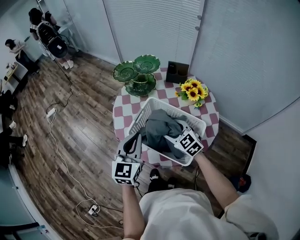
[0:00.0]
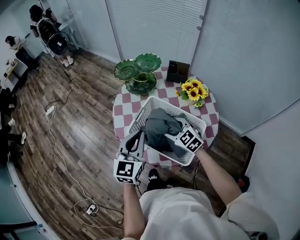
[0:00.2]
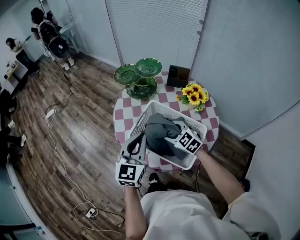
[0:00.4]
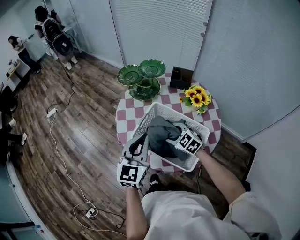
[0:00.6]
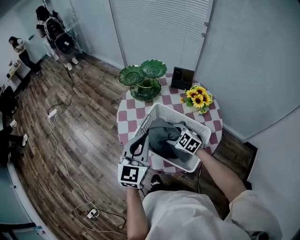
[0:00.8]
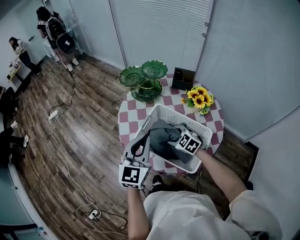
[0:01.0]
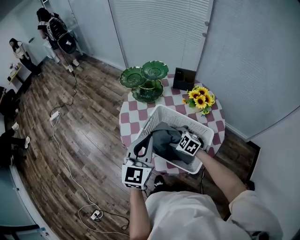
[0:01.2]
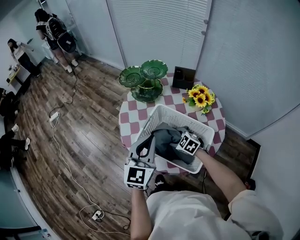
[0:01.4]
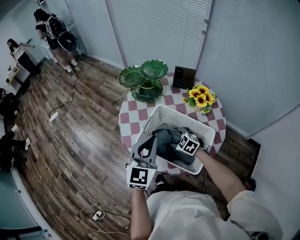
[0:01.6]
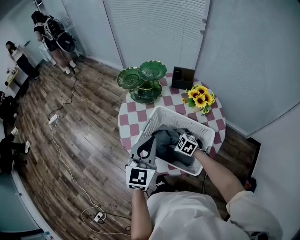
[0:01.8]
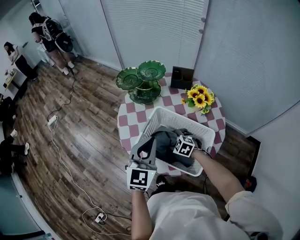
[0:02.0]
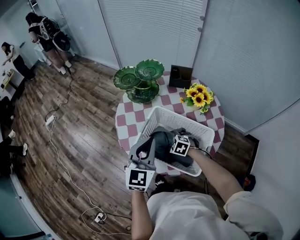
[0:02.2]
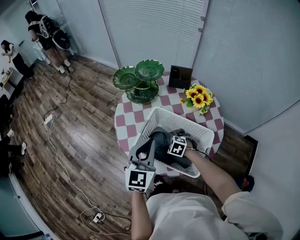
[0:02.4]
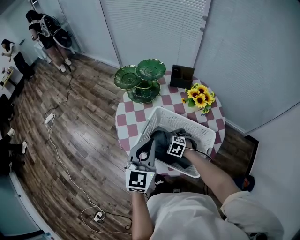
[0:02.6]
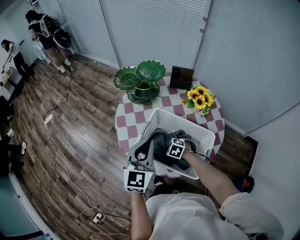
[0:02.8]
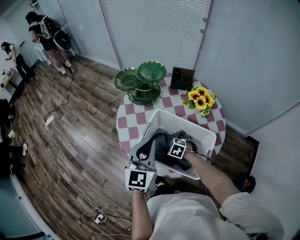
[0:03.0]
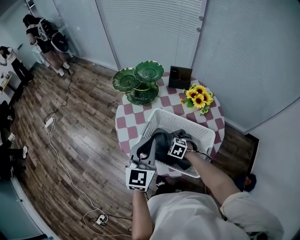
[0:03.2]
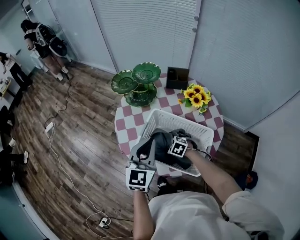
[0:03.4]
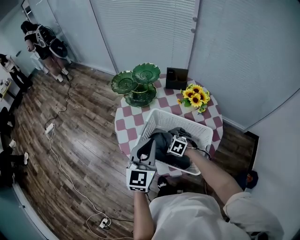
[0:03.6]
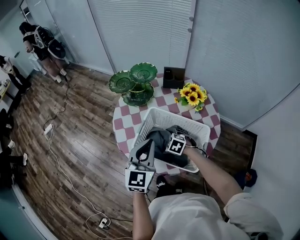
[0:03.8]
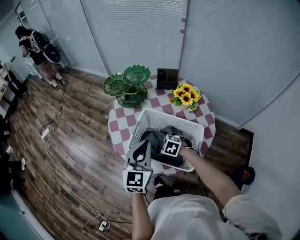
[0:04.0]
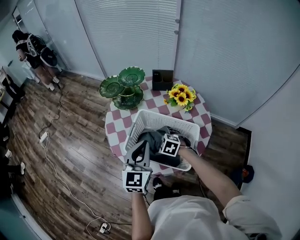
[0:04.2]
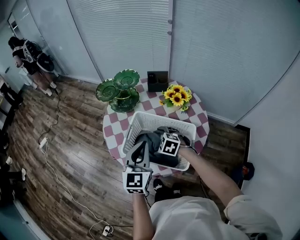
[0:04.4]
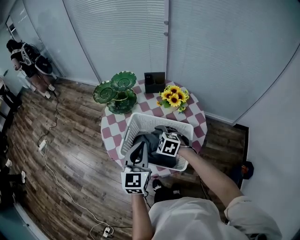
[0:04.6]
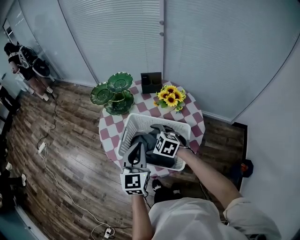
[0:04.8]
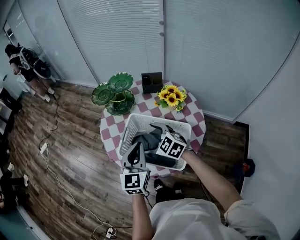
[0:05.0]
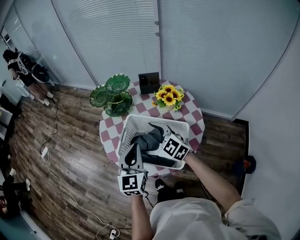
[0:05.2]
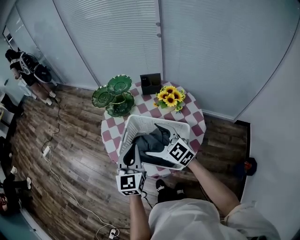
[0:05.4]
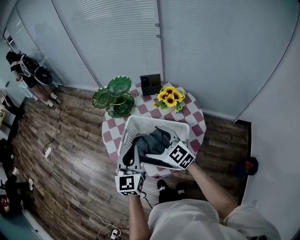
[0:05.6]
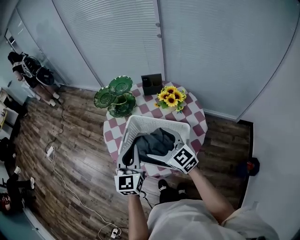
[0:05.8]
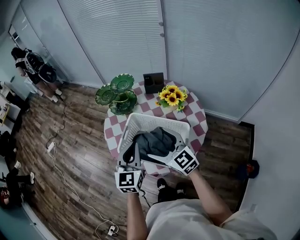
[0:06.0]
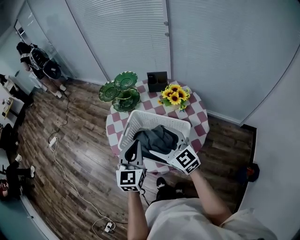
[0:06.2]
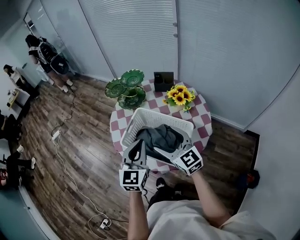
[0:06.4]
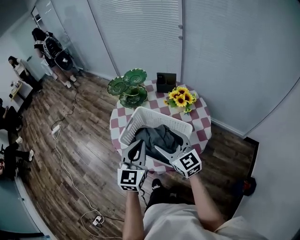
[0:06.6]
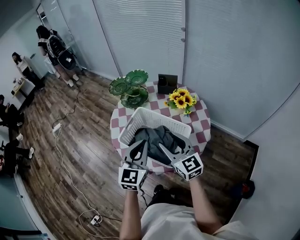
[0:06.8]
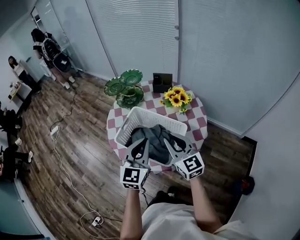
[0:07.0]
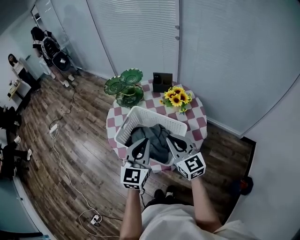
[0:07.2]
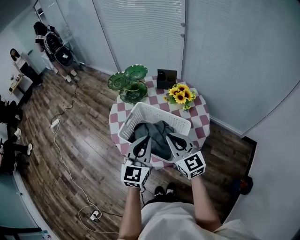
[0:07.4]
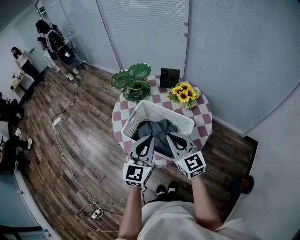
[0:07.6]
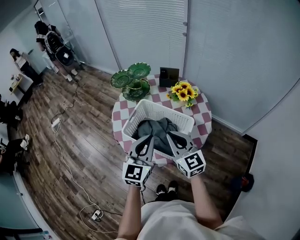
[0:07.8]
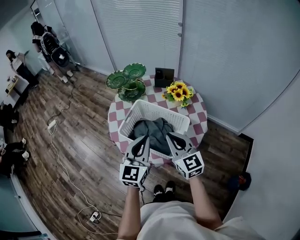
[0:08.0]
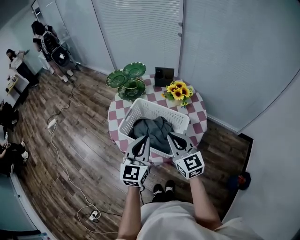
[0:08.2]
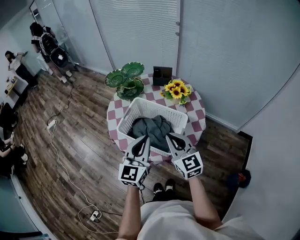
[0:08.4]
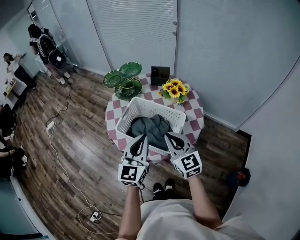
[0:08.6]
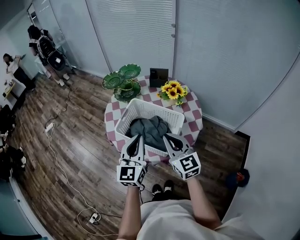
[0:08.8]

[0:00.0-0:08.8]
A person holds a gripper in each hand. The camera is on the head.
0.0 to 1.4 s: The right gripper moves downward, roughly 10 cm, and swivels about 20 degrees.
1.4 to 3.0 s: The right gripper heads downward, covering roughly 10 cm.
3.0 to 4.4 s: The right gripper travels upward by approximately 10 cm, and opens up, while the left gripper changes place by roughly 5 cm.
4.4 to 5.8 s: The right gripper heads upward, covering roughly 20 cm, and tilts its fingers some 50 degrees upward.
5.8 to 7.4 s: The left gripper goes approximately 10 cm backward and to the right. The right gripper travels to the right and backward by some 10 cm, and closes.
7.4 to 8.8 s: The grippers stay close to where they were, moving slightly.

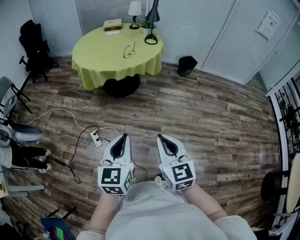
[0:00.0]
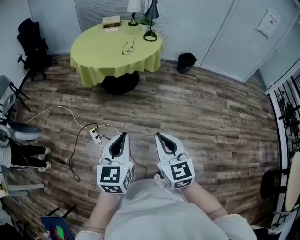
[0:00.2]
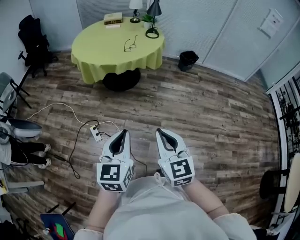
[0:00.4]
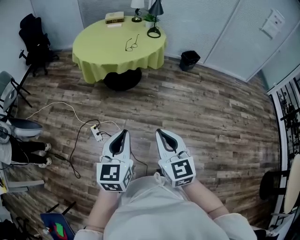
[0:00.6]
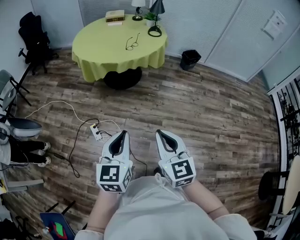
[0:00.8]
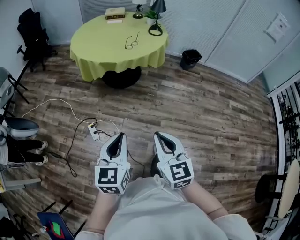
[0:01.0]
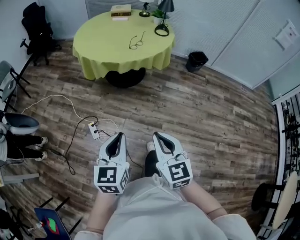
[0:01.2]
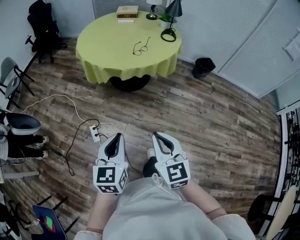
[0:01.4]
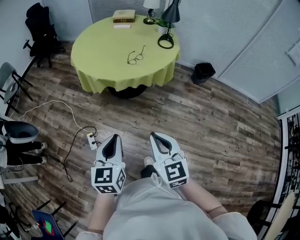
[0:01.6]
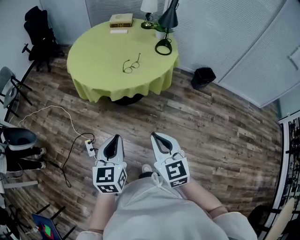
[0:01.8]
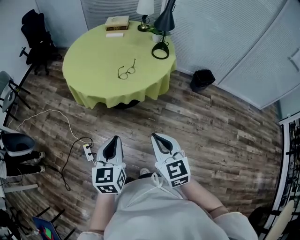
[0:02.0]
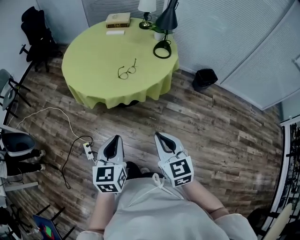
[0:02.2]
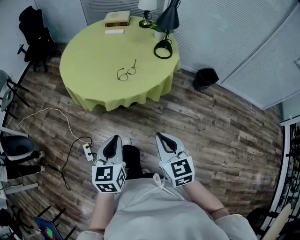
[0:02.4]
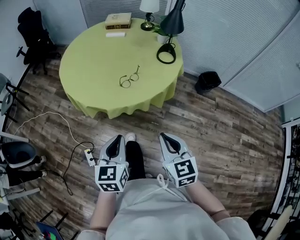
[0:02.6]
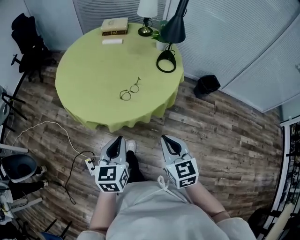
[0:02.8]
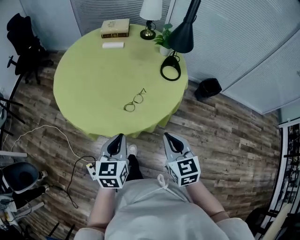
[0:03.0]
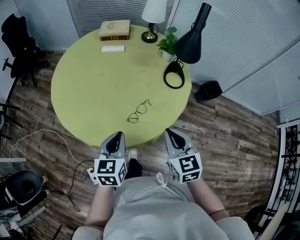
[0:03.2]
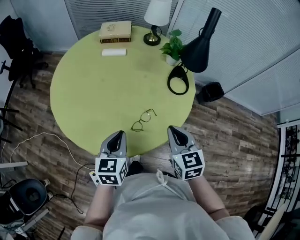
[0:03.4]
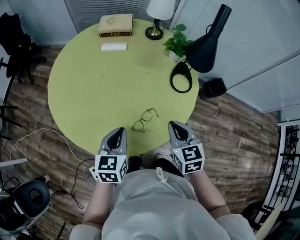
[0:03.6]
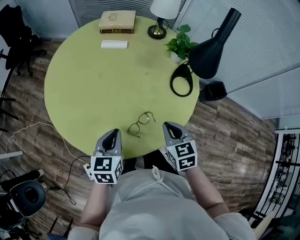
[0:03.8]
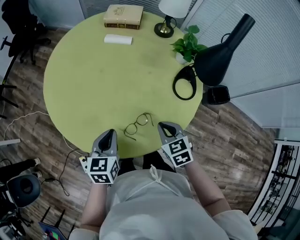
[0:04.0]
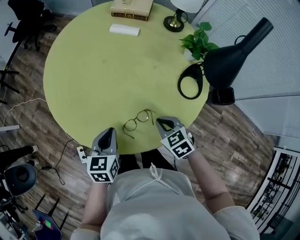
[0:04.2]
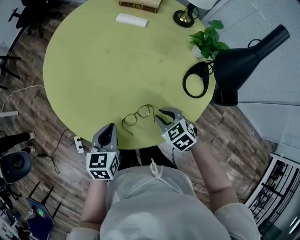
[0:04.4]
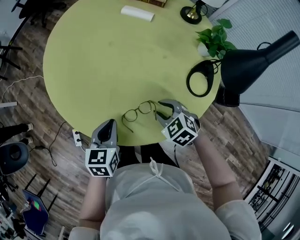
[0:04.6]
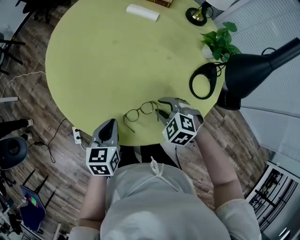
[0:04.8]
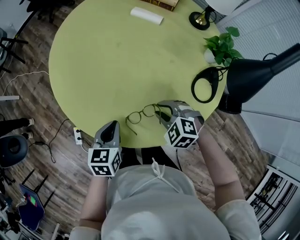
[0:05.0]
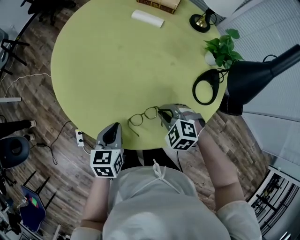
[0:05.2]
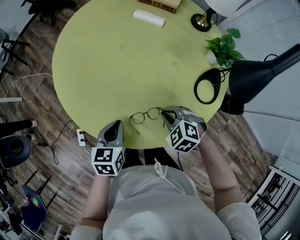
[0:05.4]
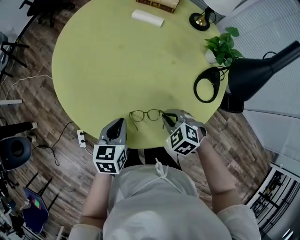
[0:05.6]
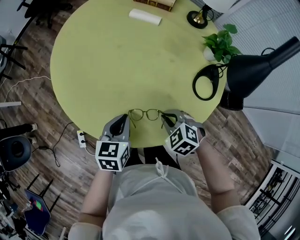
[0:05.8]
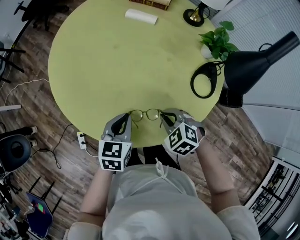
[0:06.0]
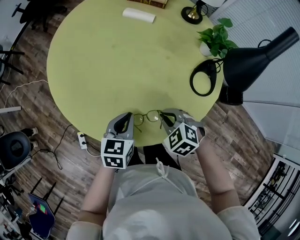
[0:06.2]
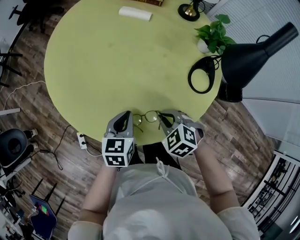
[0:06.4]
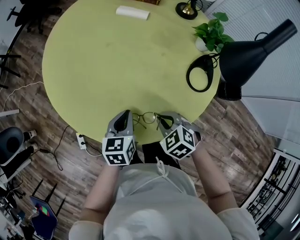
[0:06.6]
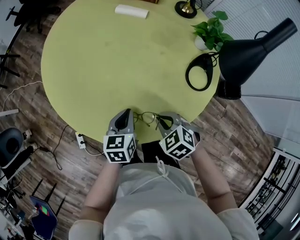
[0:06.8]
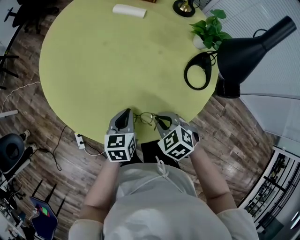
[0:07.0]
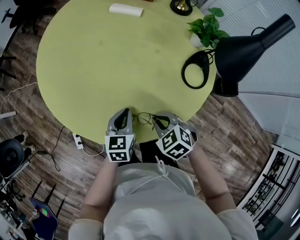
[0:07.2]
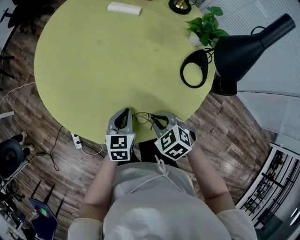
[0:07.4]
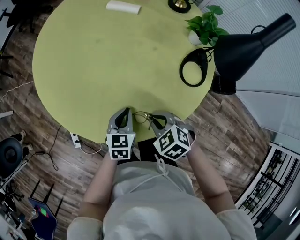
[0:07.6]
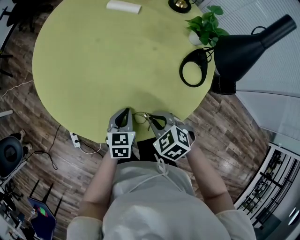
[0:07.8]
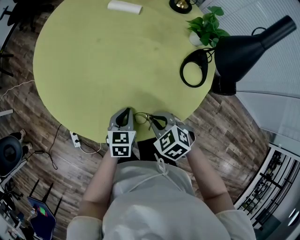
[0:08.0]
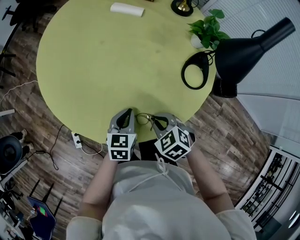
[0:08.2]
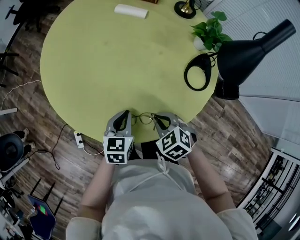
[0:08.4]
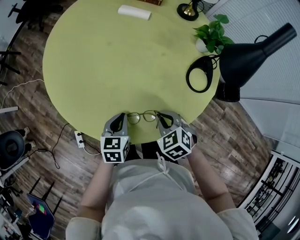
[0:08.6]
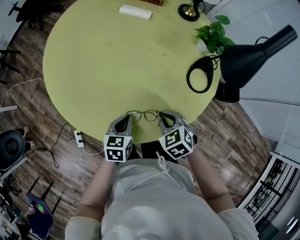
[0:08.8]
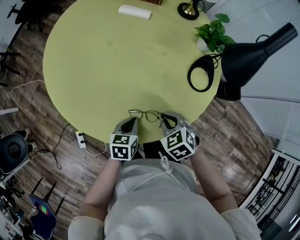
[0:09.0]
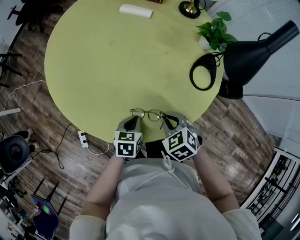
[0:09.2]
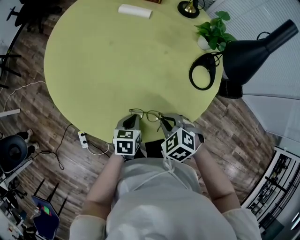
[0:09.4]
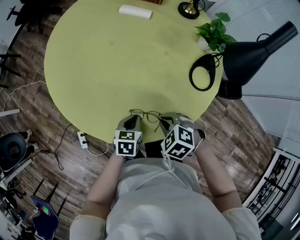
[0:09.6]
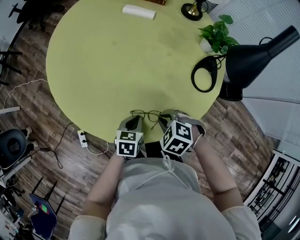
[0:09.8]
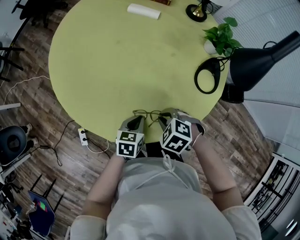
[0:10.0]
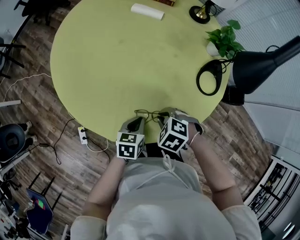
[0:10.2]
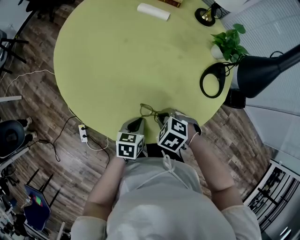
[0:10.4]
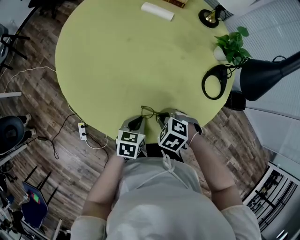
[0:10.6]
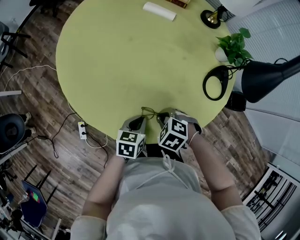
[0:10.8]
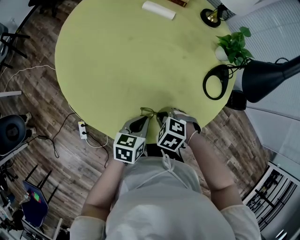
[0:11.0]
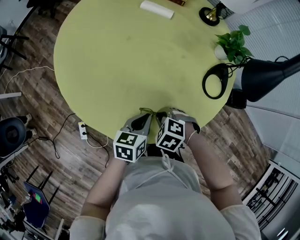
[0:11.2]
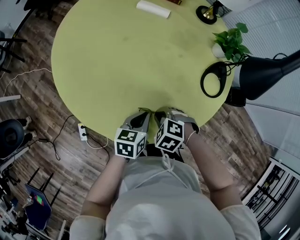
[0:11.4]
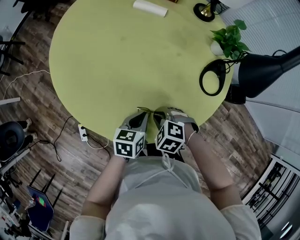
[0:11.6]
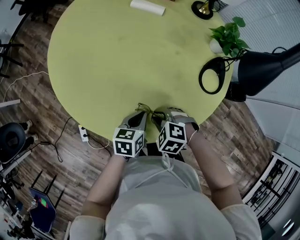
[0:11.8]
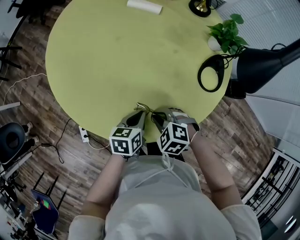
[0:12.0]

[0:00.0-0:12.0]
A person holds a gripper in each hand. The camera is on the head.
0.0 to 1.6 s: The two grippers go some 30 cm forward.
1.6 to 3.0 s: The two grippers travel together, forward, roughly 40 cm.
3.0 to 4.4 s: The left gripper moves about 20 cm, and swivels approximately 20 degrees. The right gripper ends up some 35 cm from where it was, and changes its angle by approximately 50 degrees.
6.0 to 7.6 s: The left gripper moves downward, roughly 10 cm.
7.6 to 9.0 s: The grippers make only small movements.
9.0 to 10.4 s: The right gripper shifts by about 5 cm, and changes its angle by roughly 30 degrees.

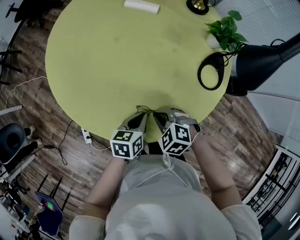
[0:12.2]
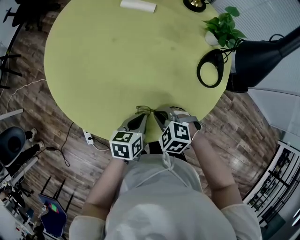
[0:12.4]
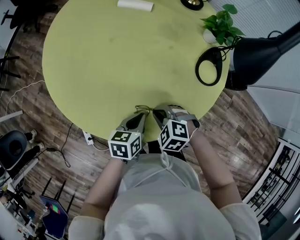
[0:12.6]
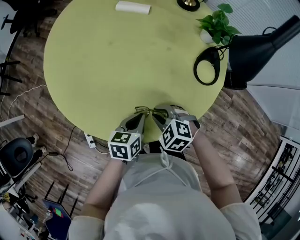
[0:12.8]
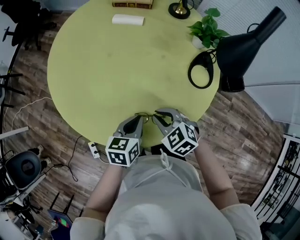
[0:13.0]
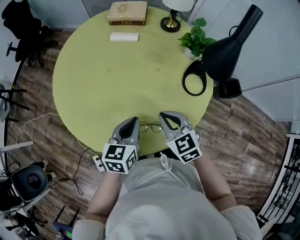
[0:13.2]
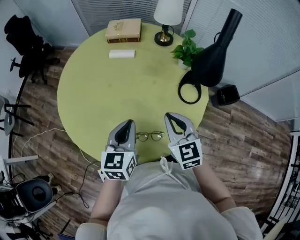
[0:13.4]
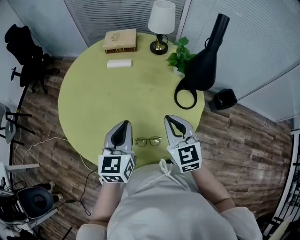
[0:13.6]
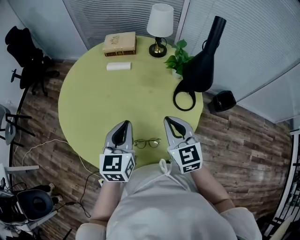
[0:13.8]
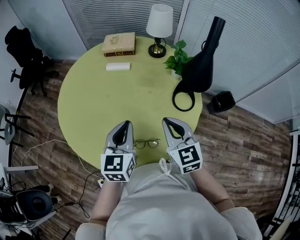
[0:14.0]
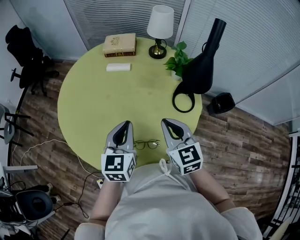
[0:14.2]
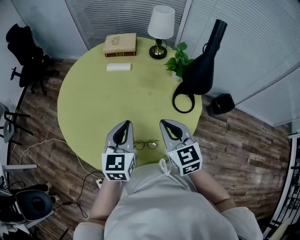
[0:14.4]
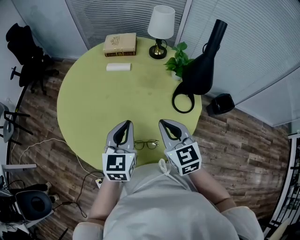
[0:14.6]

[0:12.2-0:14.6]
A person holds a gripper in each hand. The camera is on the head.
12.2 to 13.4 s: Both grippers move upward, about 20 cm. The left gripper turns by approximately 30 degrees; the right gripper points its fingers approximately 40 degrees further upward.
13.4 to 14.6 s: The grippers move only a little.

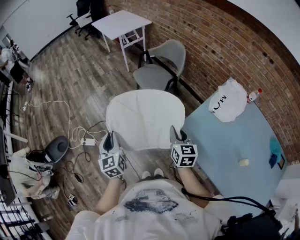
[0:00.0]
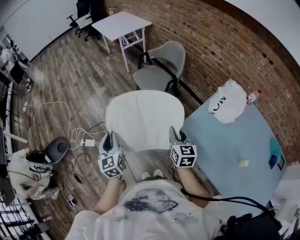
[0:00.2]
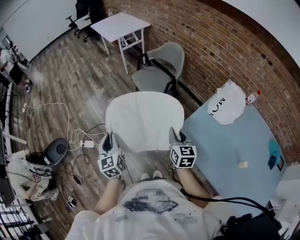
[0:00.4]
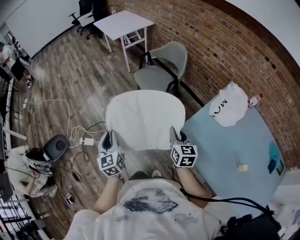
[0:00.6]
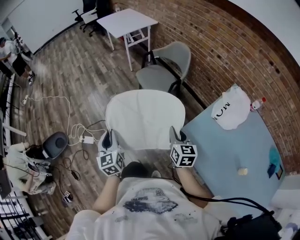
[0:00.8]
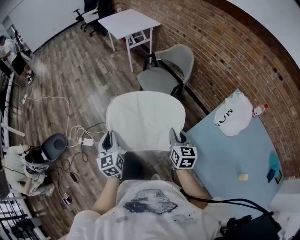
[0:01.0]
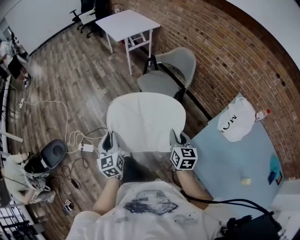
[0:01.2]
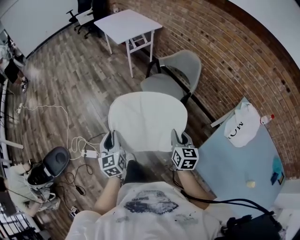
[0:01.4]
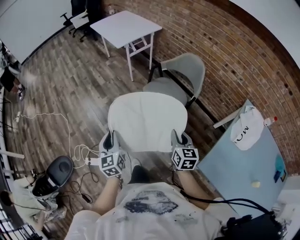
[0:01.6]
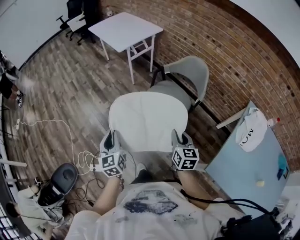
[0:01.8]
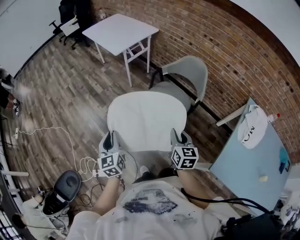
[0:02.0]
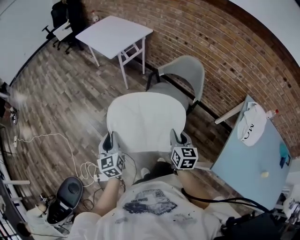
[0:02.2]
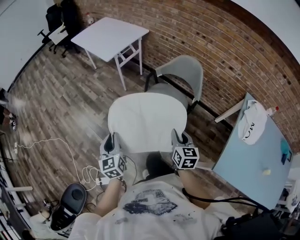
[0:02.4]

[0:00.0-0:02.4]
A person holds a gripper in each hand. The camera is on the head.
0.0 to 1.2 s: Both grippers travel together forward, approximately 15 cm.
1.2 to 2.4 s: The two grippers go some 35 cm forward and to the left.
